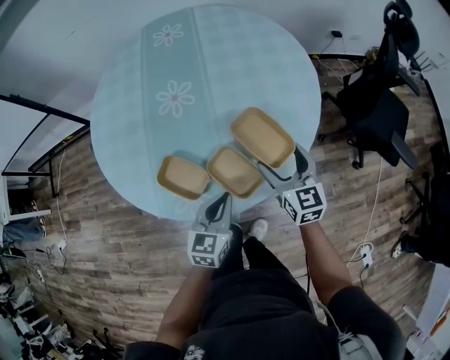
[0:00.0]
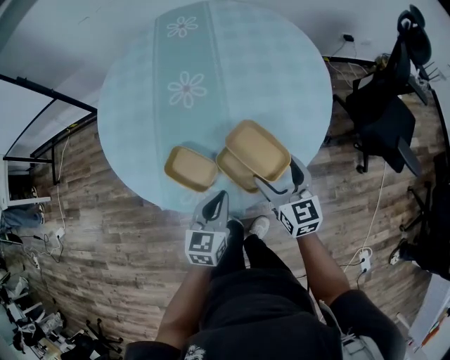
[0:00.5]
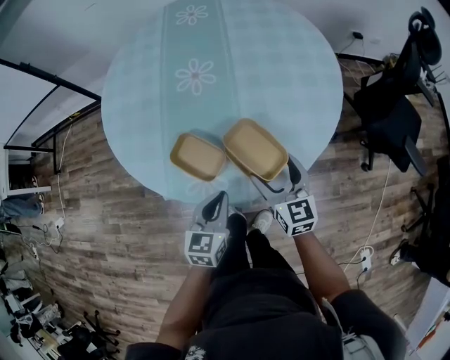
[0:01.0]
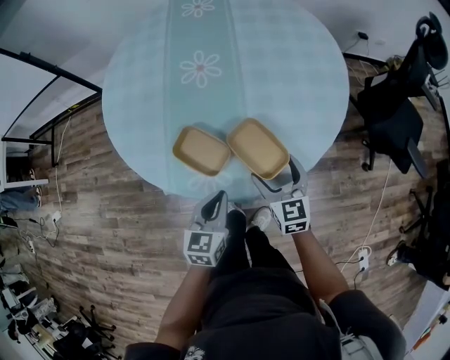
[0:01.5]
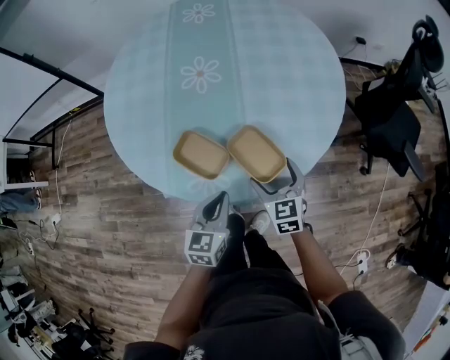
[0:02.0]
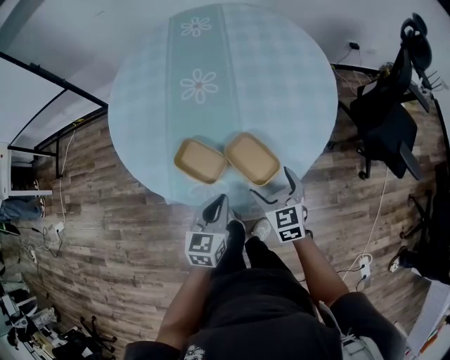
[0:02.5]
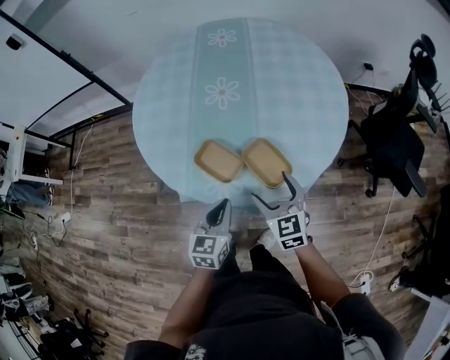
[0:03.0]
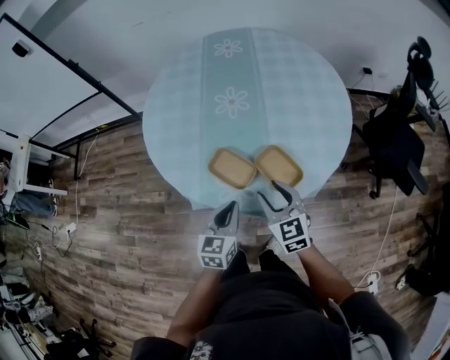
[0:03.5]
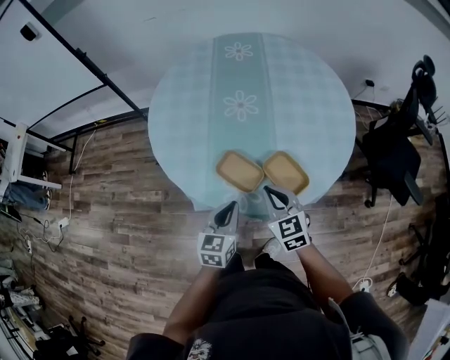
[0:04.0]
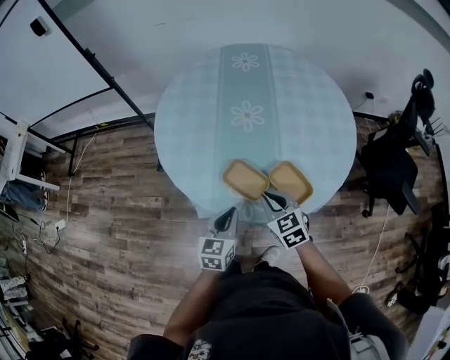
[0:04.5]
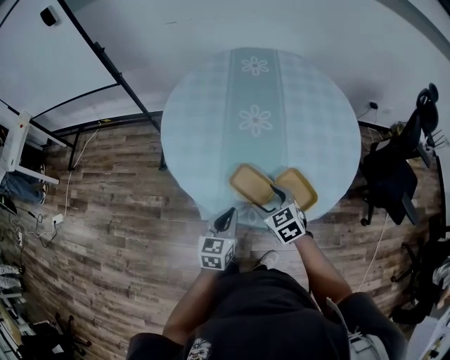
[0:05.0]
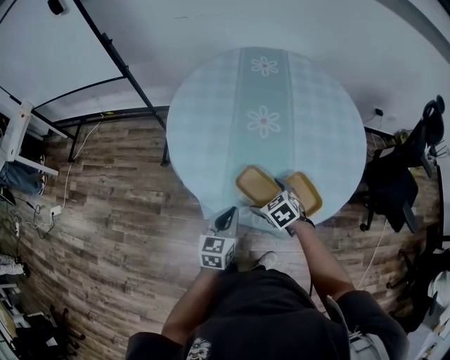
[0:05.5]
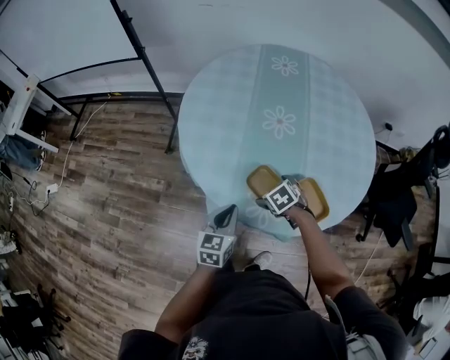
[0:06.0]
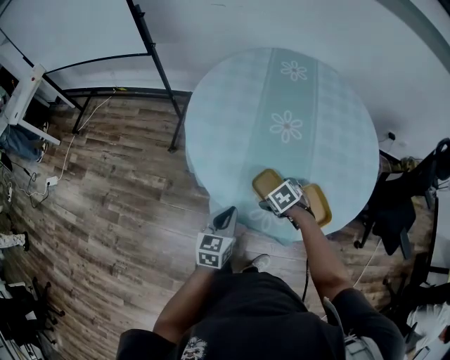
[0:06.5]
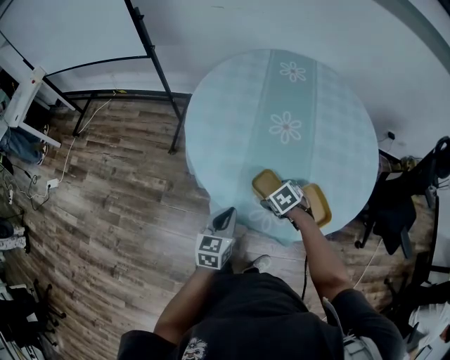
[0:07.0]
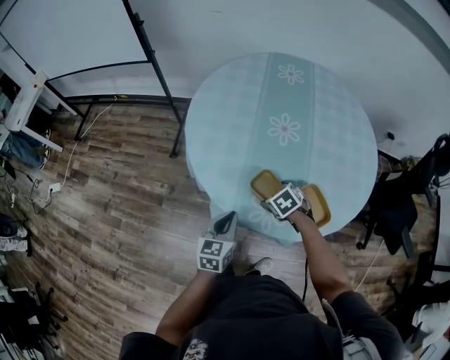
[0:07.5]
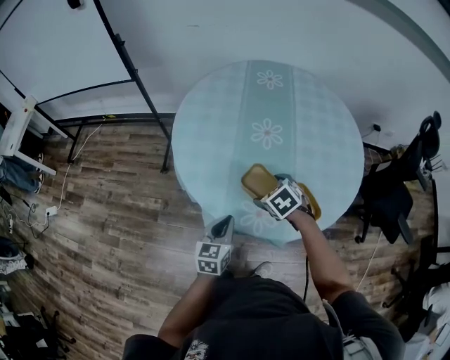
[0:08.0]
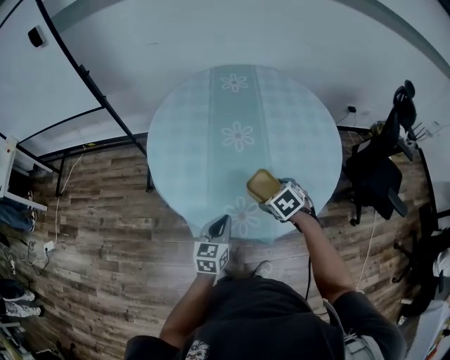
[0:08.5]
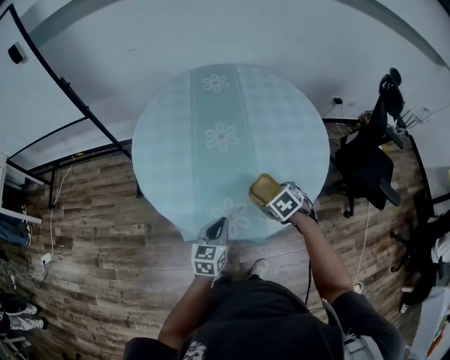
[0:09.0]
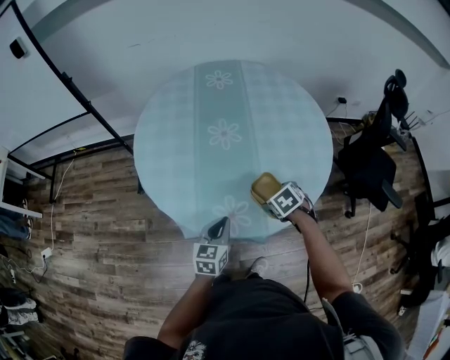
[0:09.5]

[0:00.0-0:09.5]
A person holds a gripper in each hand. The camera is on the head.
0:00.0 to 0:02.0: The right gripper travels to the left, downward and backward by roughly 15 cm. The left gripper travels to the left by some 10 cm.
0:02.0 to 0:04.0: The left gripper moves to the left and upward, some 10 cm. Meanwhile the right gripper is displaced to the left and upward by roughly 15 cm, and closes up.
0:04.0 to 0:05.5: The right gripper heads downward, to the left and forward, covering roughly 15 cm, turns by roughly 30 degrees, and opens; the left gripper moves to the left, some 5 cm.
0:05.5 to 0:07.5: The left gripper moves about 5 cm.
0:07.5 to 0:09.5: The two grippers go roughly 15 cm to the right.

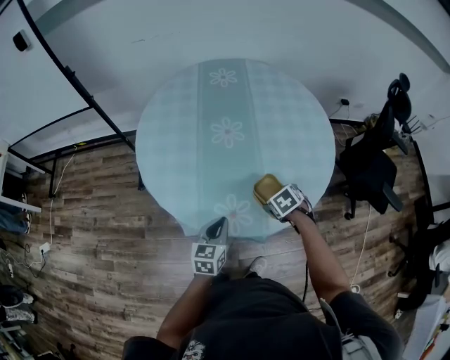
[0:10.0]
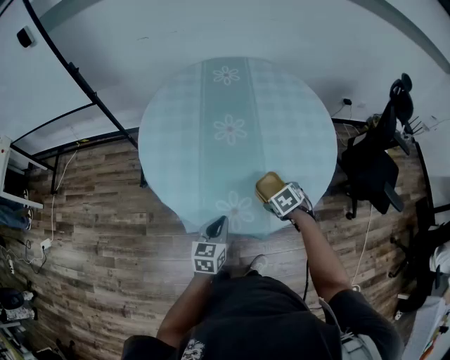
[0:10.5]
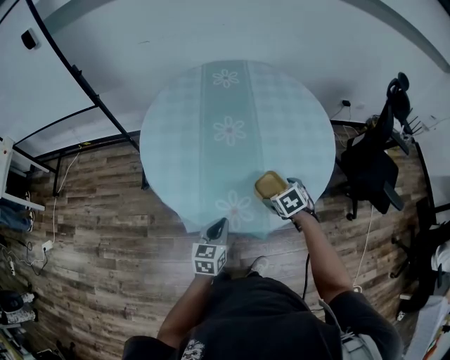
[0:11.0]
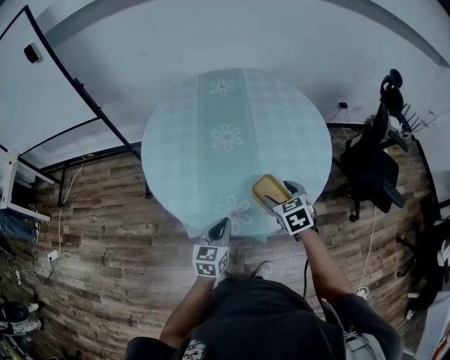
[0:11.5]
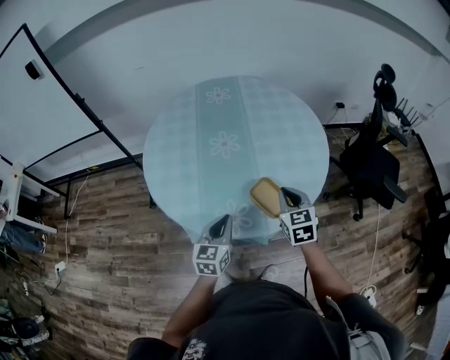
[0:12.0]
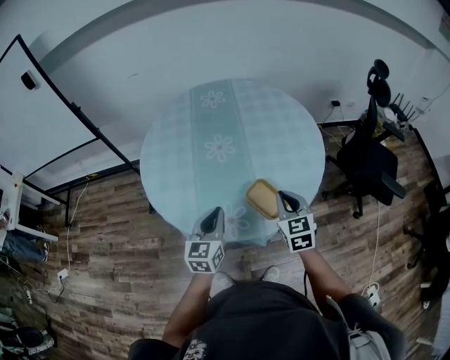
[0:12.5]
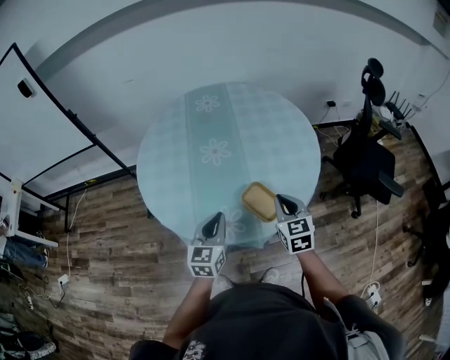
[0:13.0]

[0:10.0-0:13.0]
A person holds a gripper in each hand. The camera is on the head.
0:10.0 to 0:11.5: The left gripper shifts by about 5 cm. Meanwhile the right gripper is displaced upward by roughly 10 cm, and rotates about 30 degrees.
0:11.5 to 0:13.0: The right gripper goes some 10 cm to the right and upward, changes its angle by roughly 20 degrees, and closes its fingers, while the left gripper moves upward, roughly 5 cm.

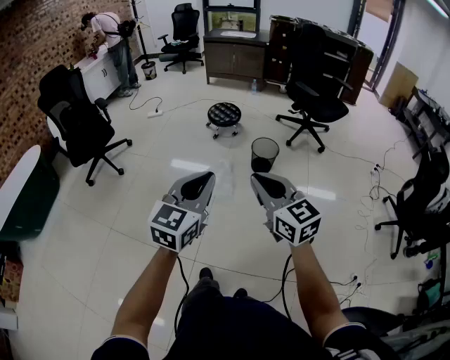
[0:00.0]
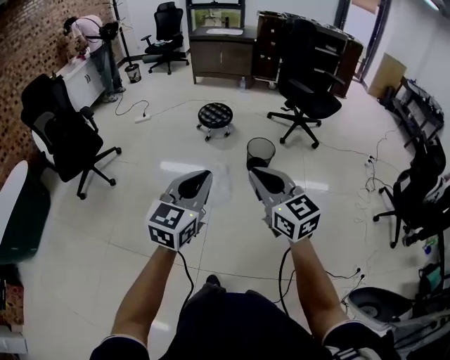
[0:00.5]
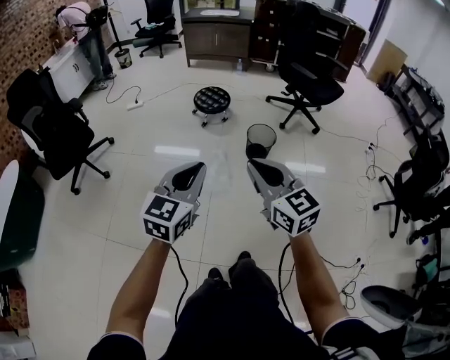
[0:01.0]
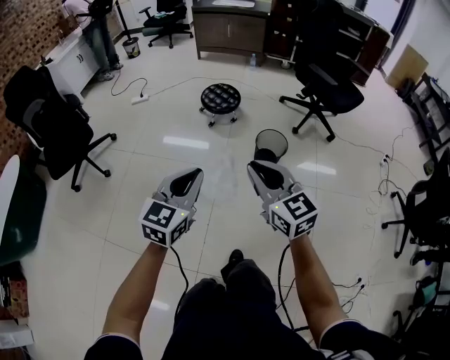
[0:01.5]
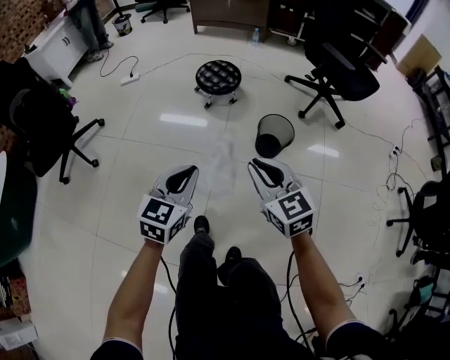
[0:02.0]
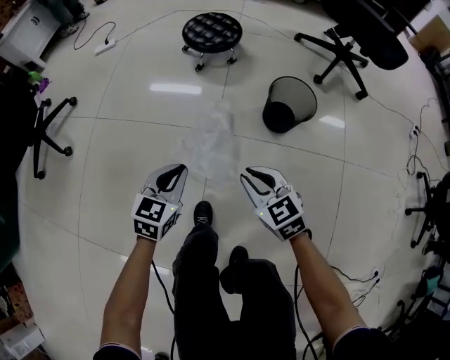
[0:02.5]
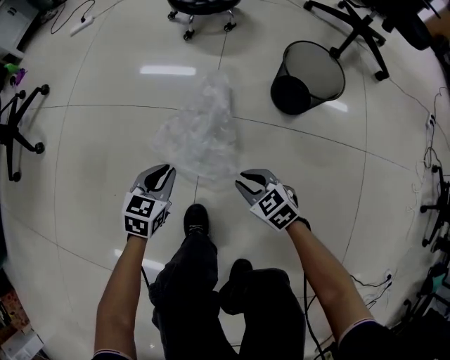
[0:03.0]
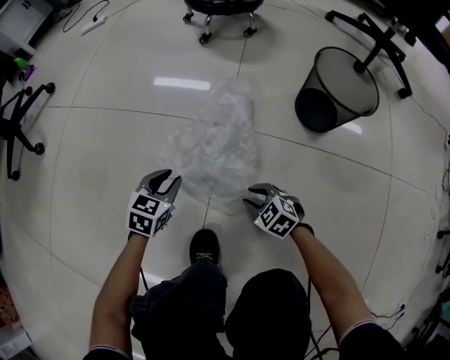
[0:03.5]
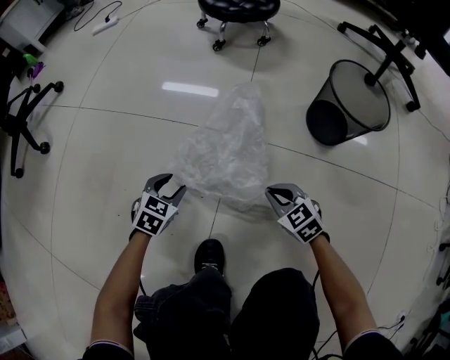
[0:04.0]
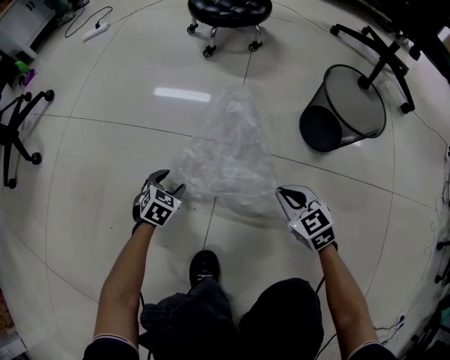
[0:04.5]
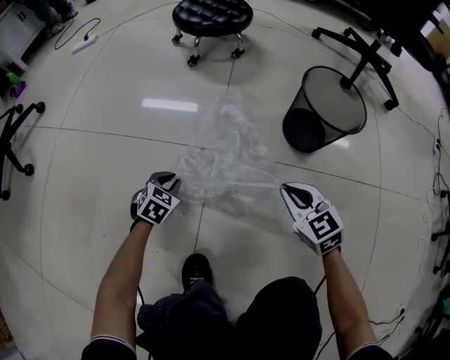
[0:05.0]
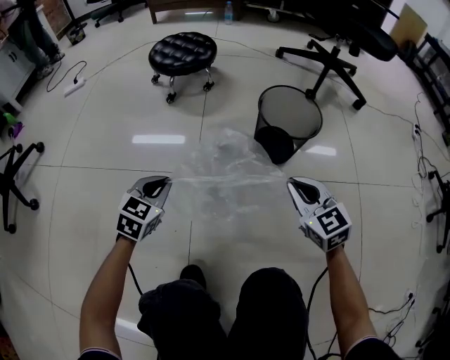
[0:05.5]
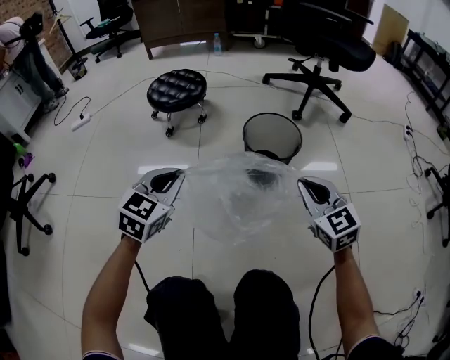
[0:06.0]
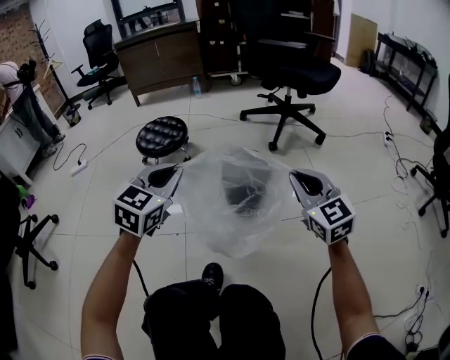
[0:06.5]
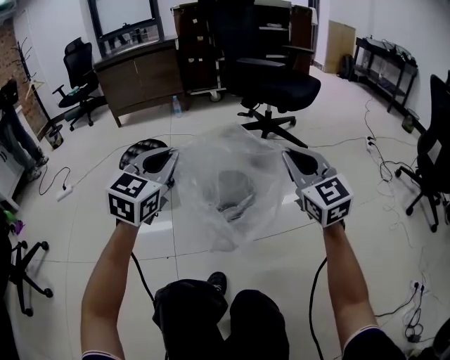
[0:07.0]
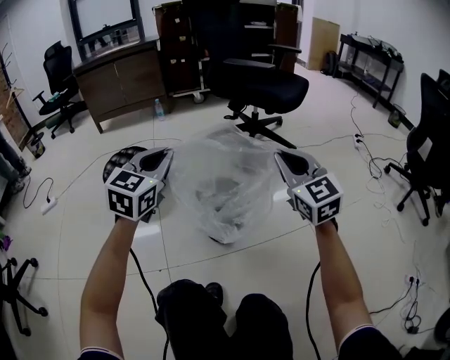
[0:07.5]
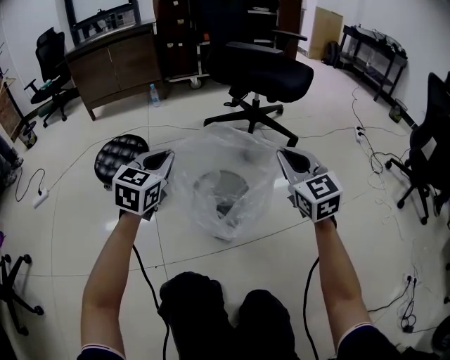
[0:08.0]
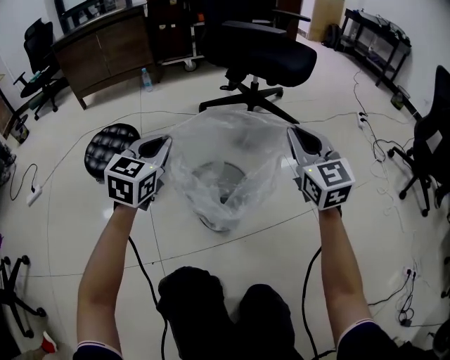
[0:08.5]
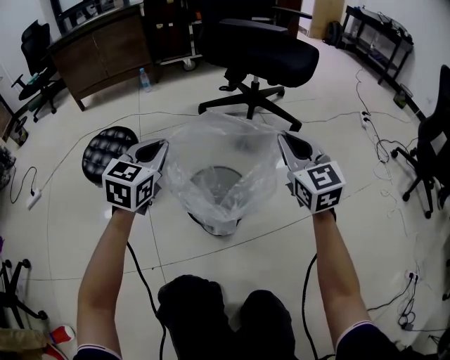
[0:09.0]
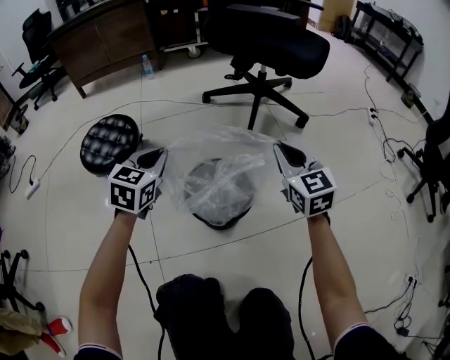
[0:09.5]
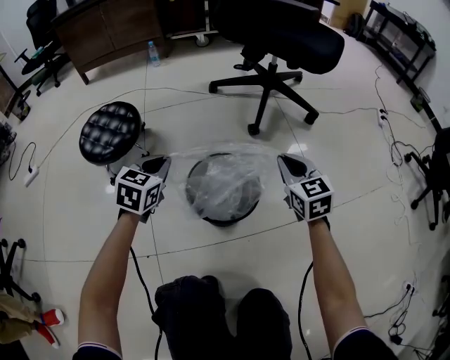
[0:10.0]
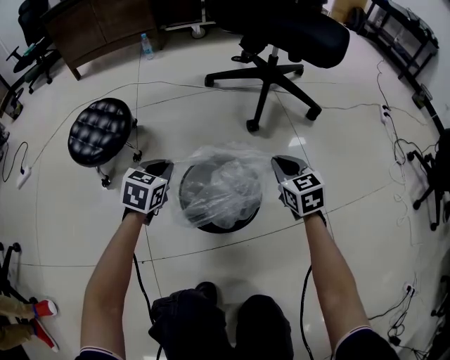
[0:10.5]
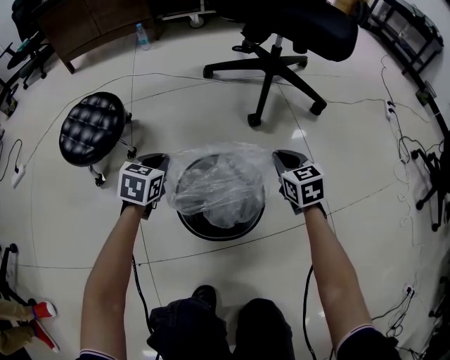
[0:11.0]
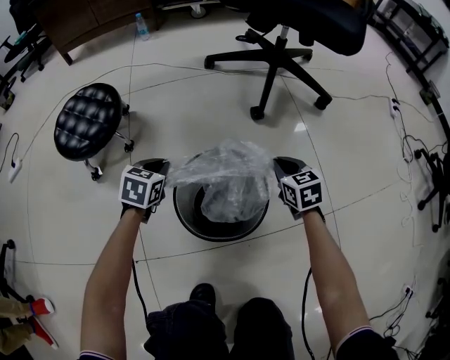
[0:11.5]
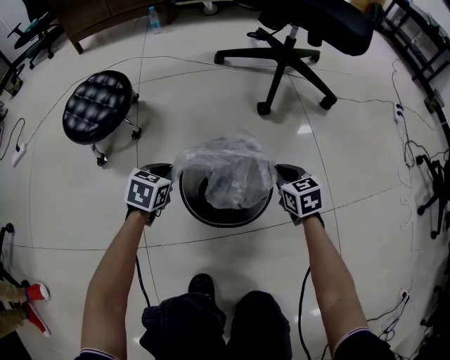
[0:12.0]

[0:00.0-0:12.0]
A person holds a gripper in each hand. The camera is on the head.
0:00.0 to 0:02.0: Both grippers travel together forward and downward, about 40 cm.
0:02.0 to 0:04.0: Both grippers travel together downward, about 70 cm. The right gripper rotates about 30 degrees, and opens, then closes once more; the left gripper points its fingers approximately 30 degrees further downward, and opens.
0:04.0 to 0:06.0: Both grippers move upward, some 30 cm. The left gripper swivels some 30 degrees, and closes its fingers. Meanwhile the right gripper rotates roughly 40 degrees.
0:06.0 to 0:08.0: Both grippers travel together forward, upward and to the right, some 30 cm. The right gripper swivels about 20 degrees.
0:08.0 to 0:10.0: The right gripper travels downward and forward by roughly 20 cm. Meanwhile the left gripper moves downward, approximately 20 cm.
0:10.0 to 0:12.0: The two grippers go approximately 20 cm downward. The right gripper turns by about 20 degrees.

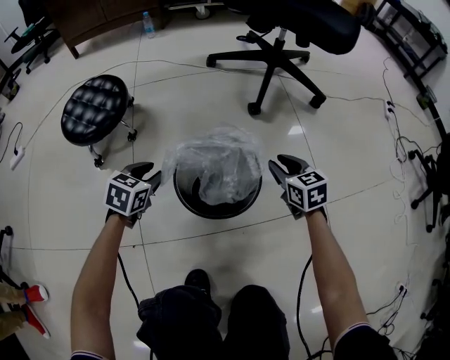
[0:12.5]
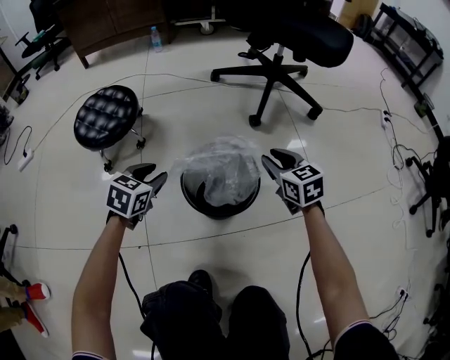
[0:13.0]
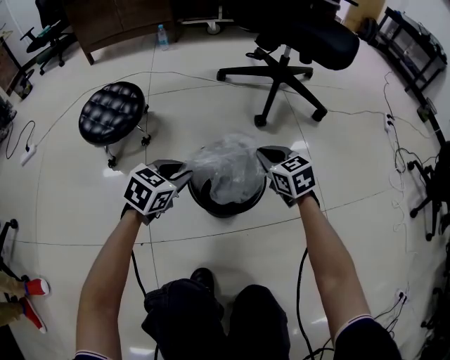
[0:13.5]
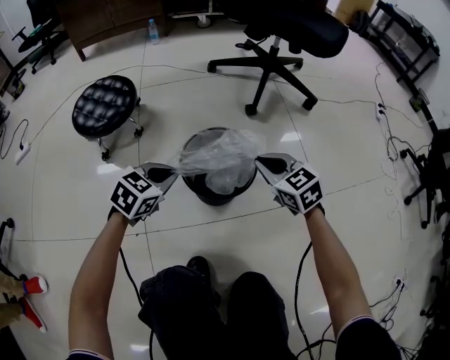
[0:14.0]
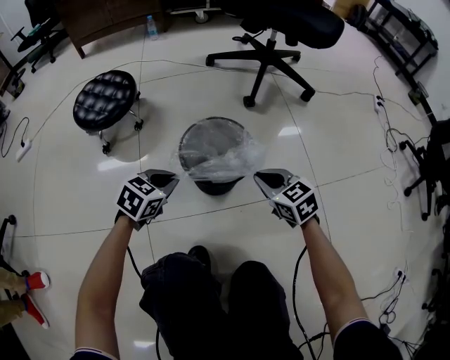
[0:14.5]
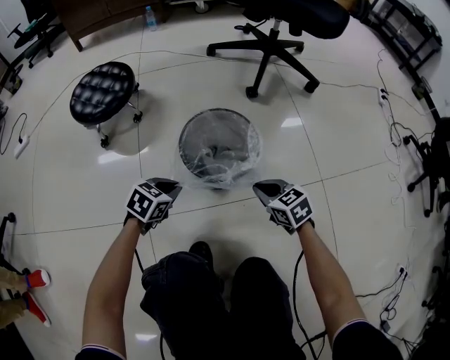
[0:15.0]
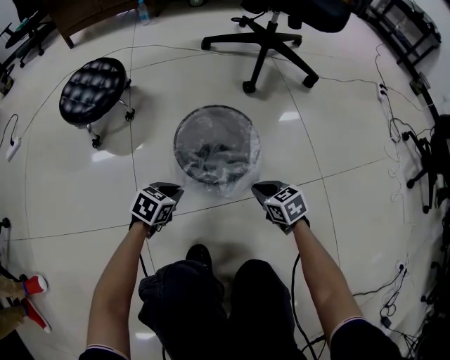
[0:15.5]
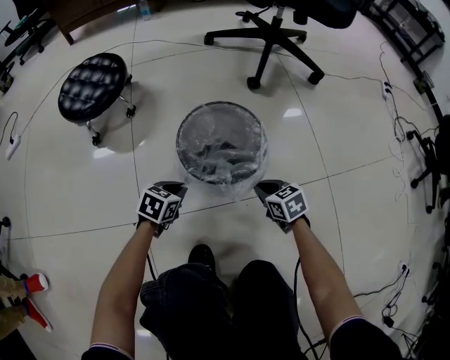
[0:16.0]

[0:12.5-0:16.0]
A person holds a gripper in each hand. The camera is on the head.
0:12.5 to 0:14.5: The right gripper heads backward, covering some 15 cm, and closes, while the left gripper travels backward and to the right by about 15 cm, and closes its fingers.
0:14.5 to 0:16.0: The grippers both shift downward by approximately 15 cm.
